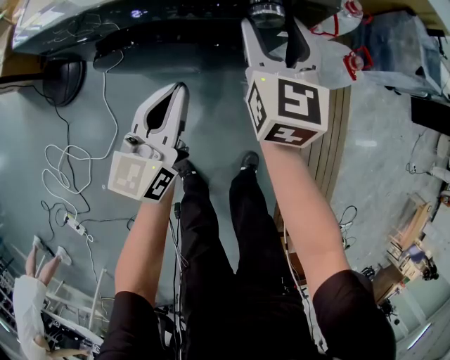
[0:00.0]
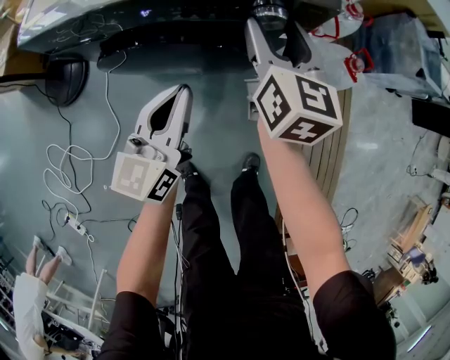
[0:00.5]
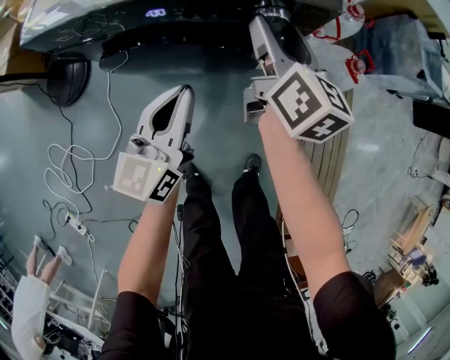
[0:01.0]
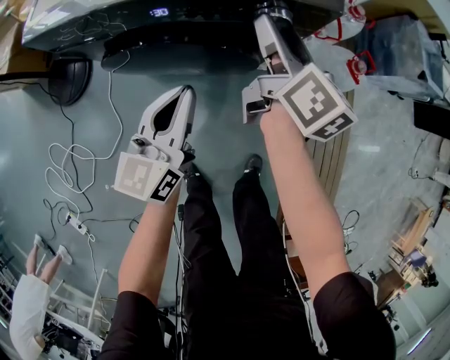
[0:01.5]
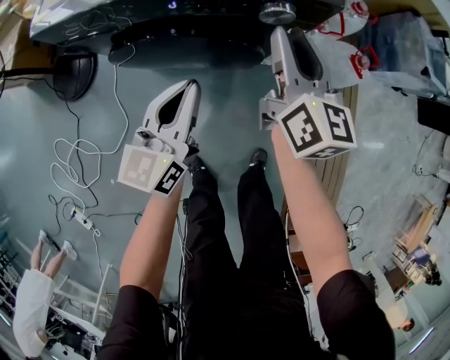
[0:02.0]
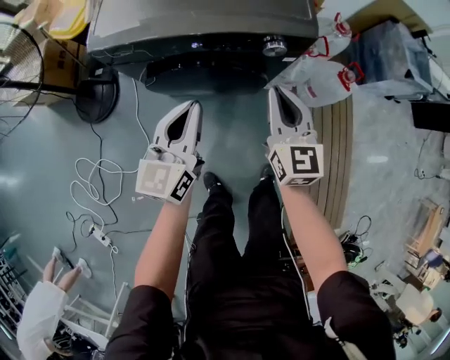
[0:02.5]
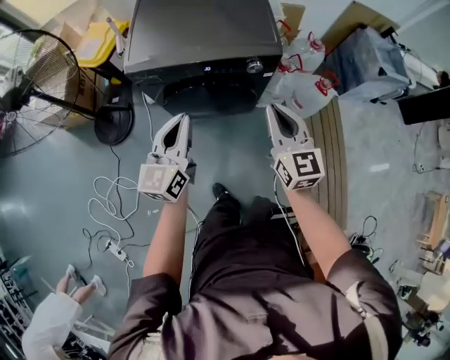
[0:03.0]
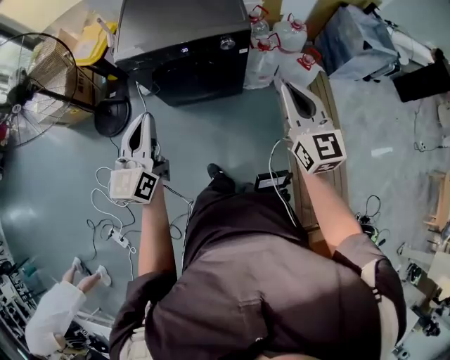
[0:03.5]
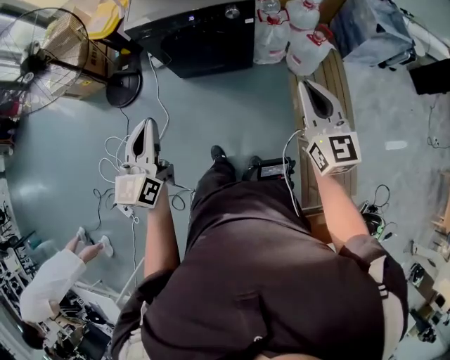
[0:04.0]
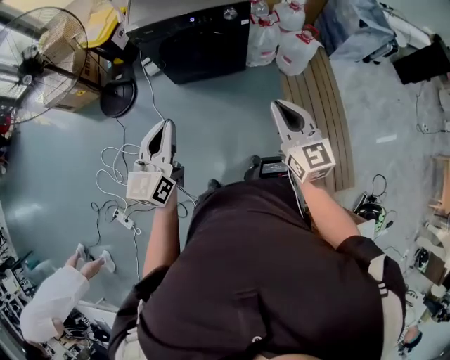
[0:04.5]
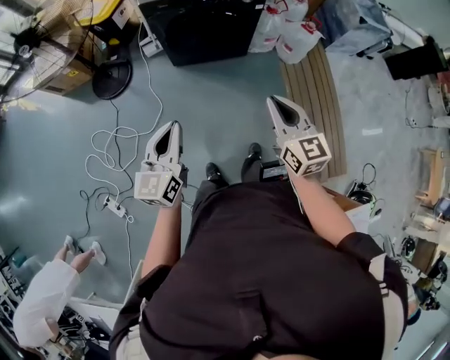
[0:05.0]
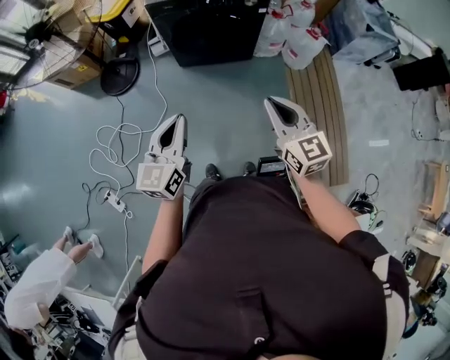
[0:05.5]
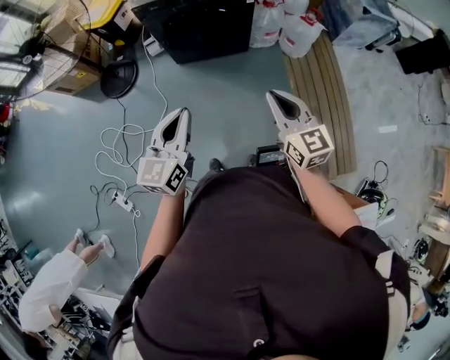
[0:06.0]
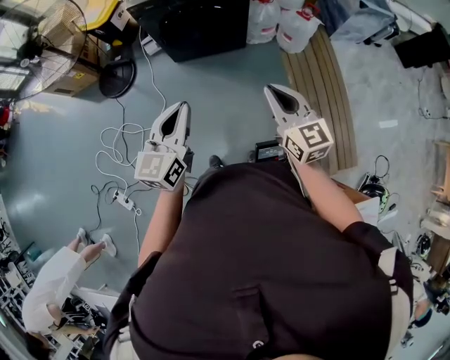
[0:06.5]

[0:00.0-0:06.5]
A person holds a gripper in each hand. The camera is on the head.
0:00.0 to 0:02.0: The right gripper shifts by roughly 5 cm, changes its angle by some 20 degrees, and closes.
0:02.0 to 0:04.5: Both grippers are carried backward, some 50 cm. Both grippers travel together upward, about 30 cm. The right gripper turns by roughly 20 degrees, and closes.
0:04.5 to 0:06.5: Both grippers move backward, roughly 5 cm. The right gripper reaches roughly 10 cm to the left, then returns; the left gripper goes to the left and returns, some 10 cm each way.

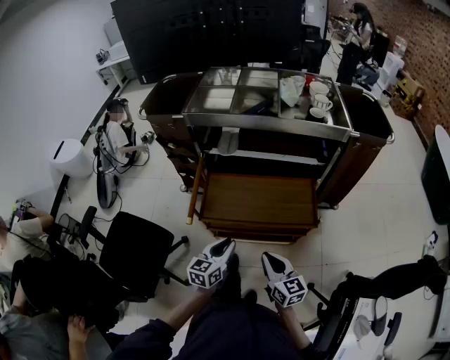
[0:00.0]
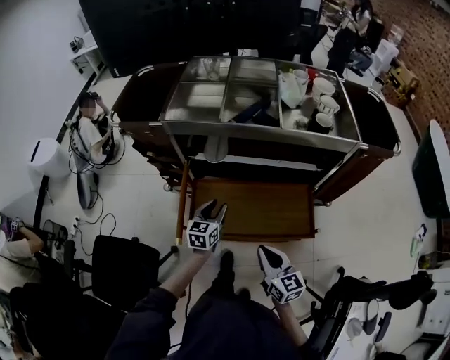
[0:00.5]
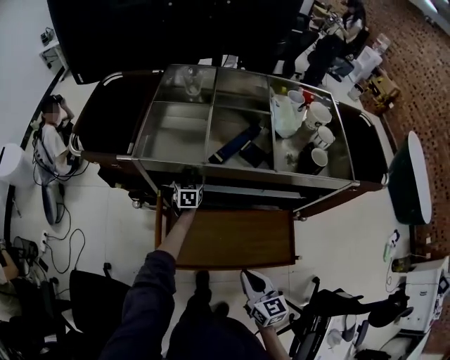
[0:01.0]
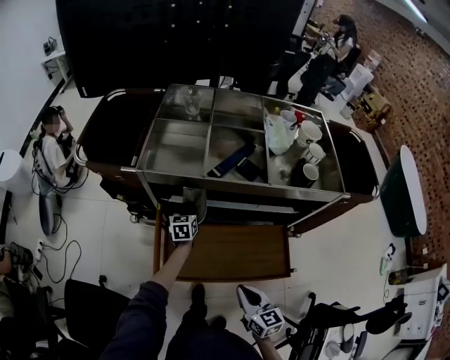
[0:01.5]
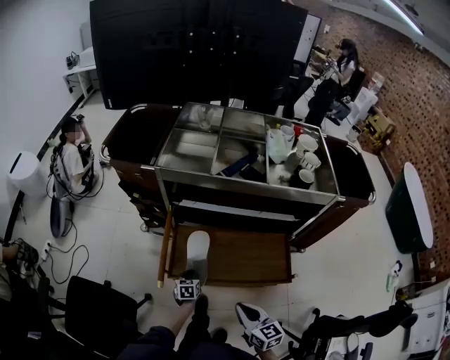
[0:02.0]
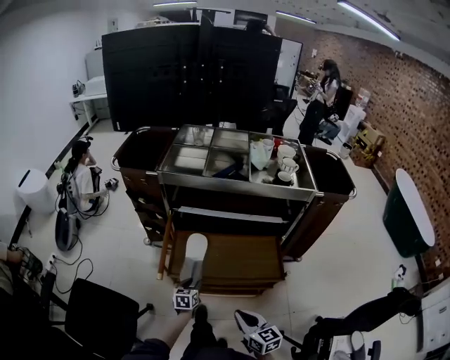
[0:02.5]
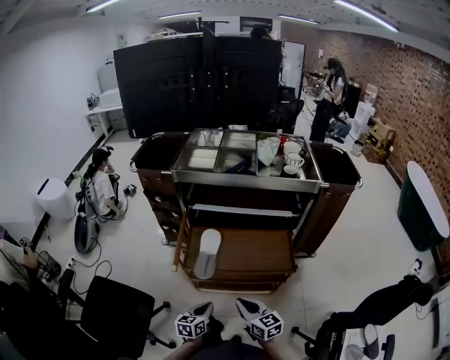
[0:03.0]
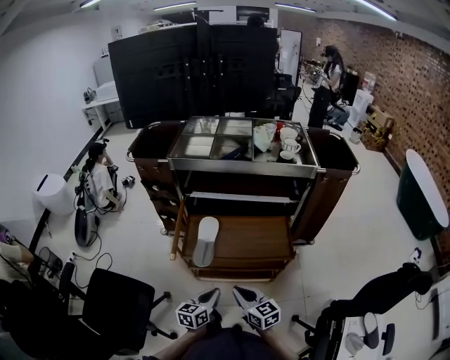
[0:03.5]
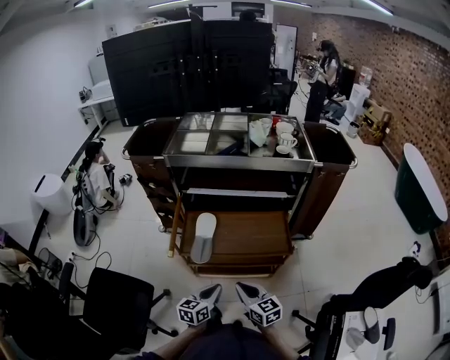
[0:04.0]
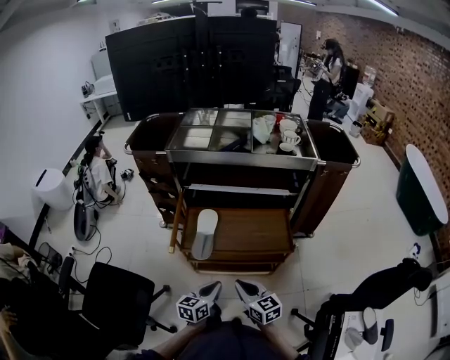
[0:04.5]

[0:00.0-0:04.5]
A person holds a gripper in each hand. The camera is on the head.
0:00.0 to 0:02.0: The left gripper is displaced downward and forward by some 30 cm, swivels about 30 degrees, and opens, then closes again. Meanwhile the right gripper moves forward, approximately 10 cm.
0:02.0 to 0:04.5: The left gripper moves backward and upward, roughly 35 cm, rotates approximately 30 degrees, and opens and closes again; the right gripper goes about 10 cm backward.

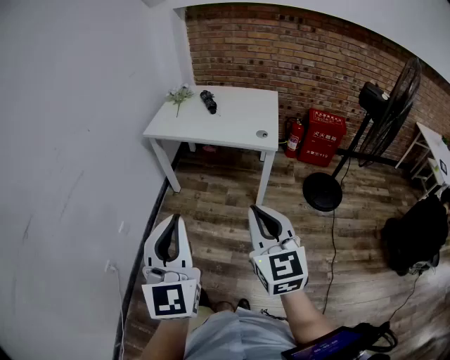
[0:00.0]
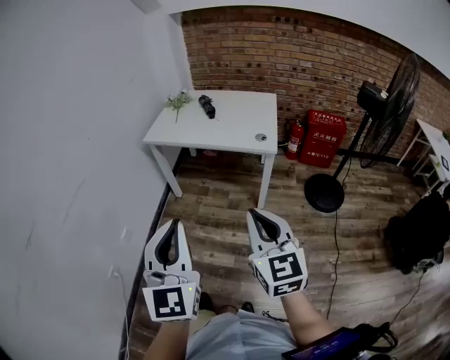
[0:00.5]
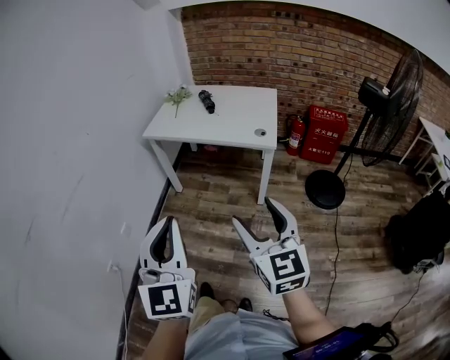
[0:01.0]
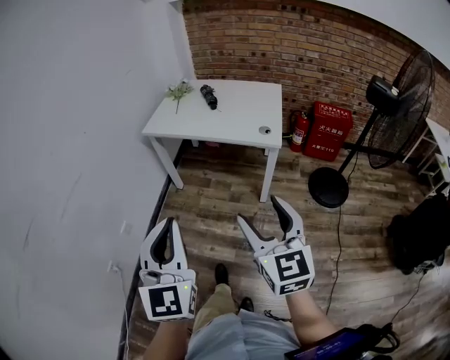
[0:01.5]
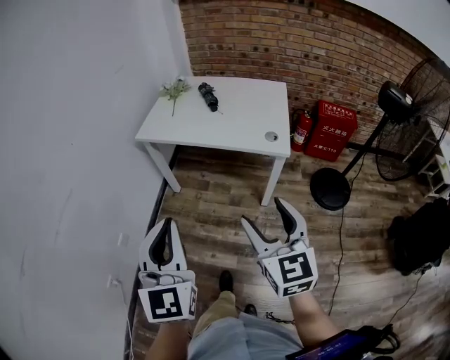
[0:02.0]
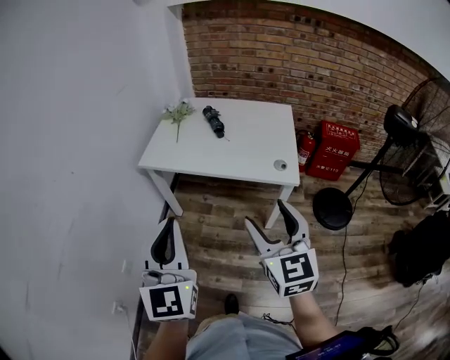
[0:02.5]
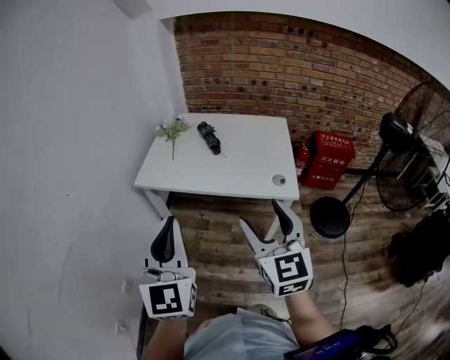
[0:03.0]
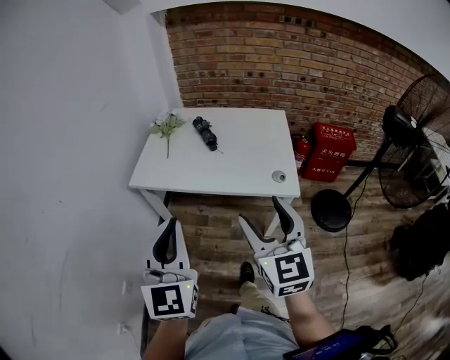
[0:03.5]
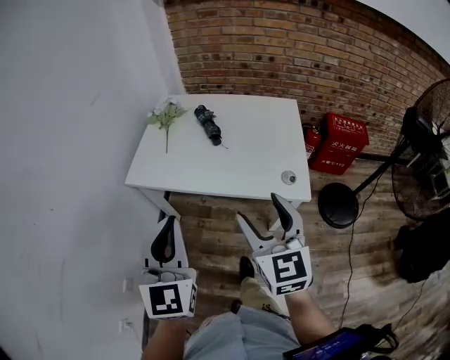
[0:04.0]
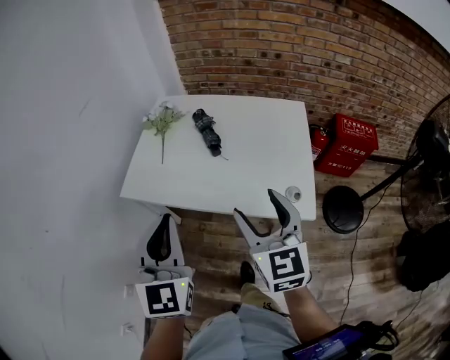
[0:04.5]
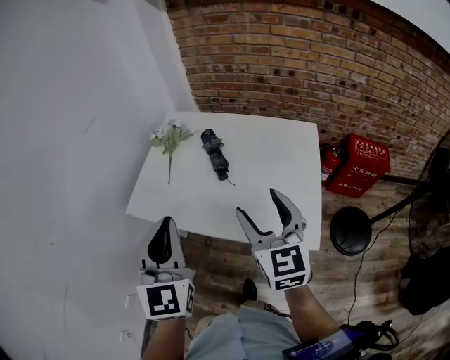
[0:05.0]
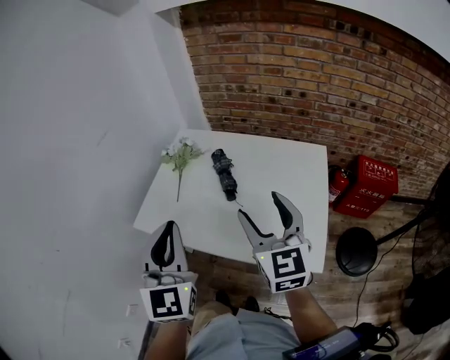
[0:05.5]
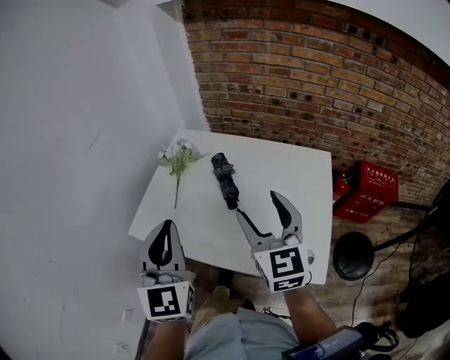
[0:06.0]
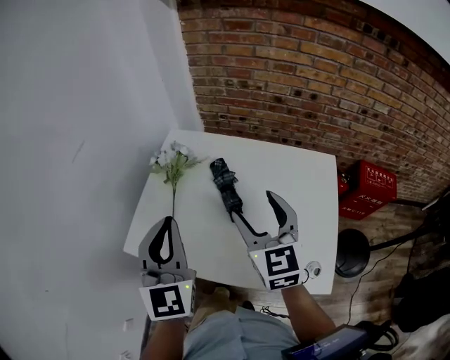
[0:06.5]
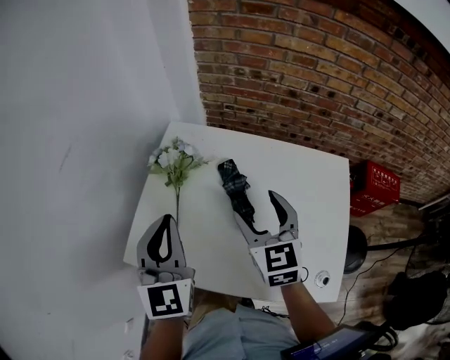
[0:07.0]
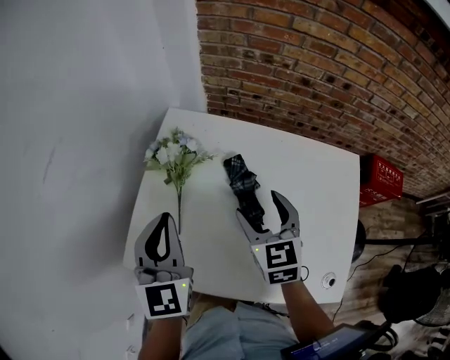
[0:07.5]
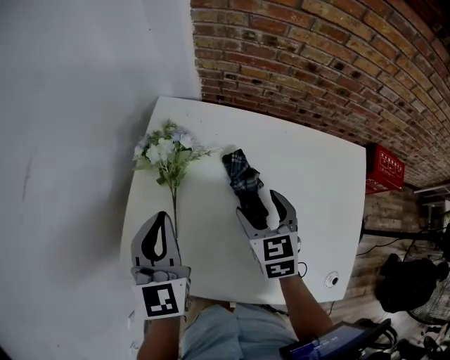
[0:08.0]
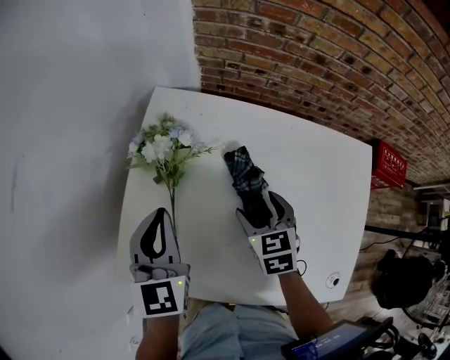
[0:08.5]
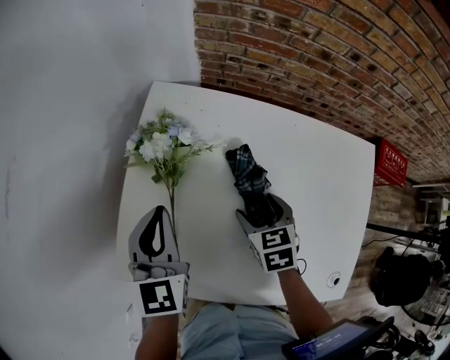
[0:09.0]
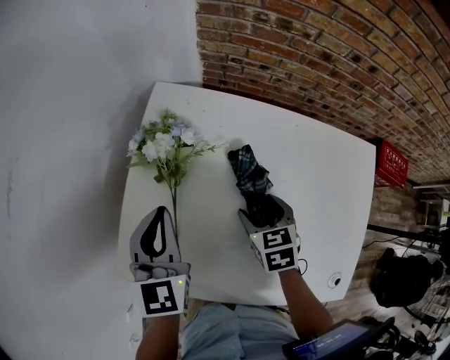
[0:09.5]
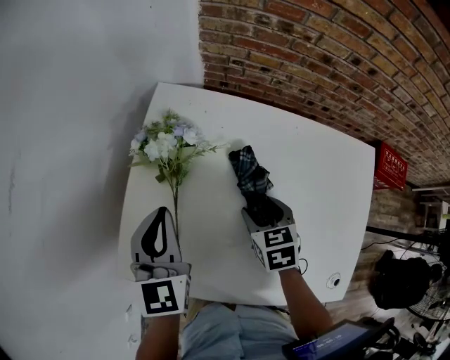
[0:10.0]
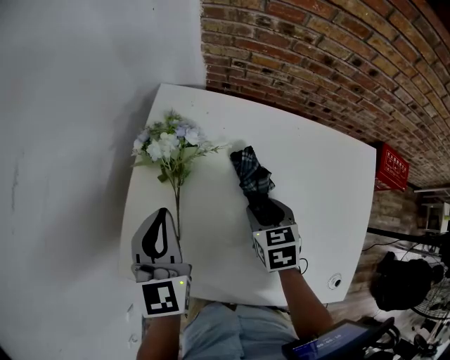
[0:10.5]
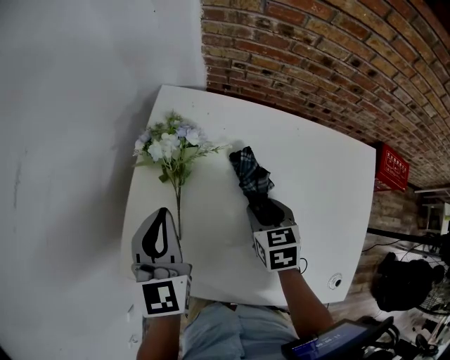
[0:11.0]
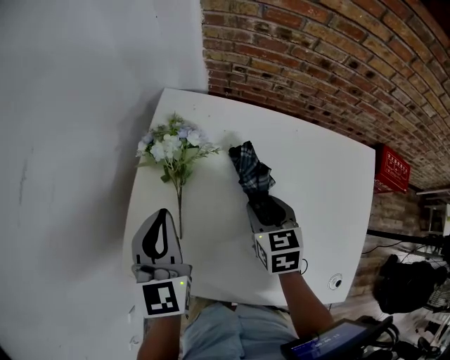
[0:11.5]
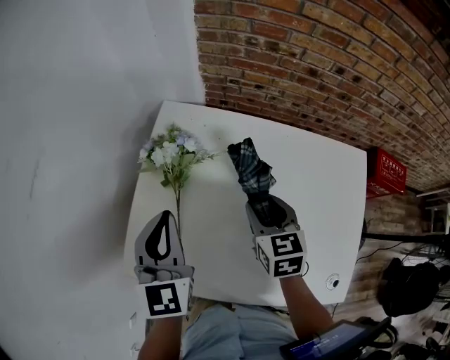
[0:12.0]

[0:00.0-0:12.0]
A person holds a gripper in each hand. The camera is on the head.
0:00.0 to 0:02.0: Both grippers travel together forward, roughly 15 cm. The right gripper opens.
0:02.0 to 0:04.0: The two grippers go some 25 cm forward.
0:04.0 to 0:06.0: Both grippers travel together forward, some 25 cm.
0:06.0 to 0:08.0: The right gripper heads downward and forward, covering some 30 cm, and tilts its fingers approximately 30 degrees downward; the left gripper heads forward and downward, covering some 30 cm.
0:08.0 to 0:10.0: The right gripper moves downward, about 10 cm; the left gripper shifts by about 5 cm.
0:10.0 to 0:12.0: The right gripper travels upward by about 10 cm. Meanwhile the left gripper is displaced upward by some 5 cm.

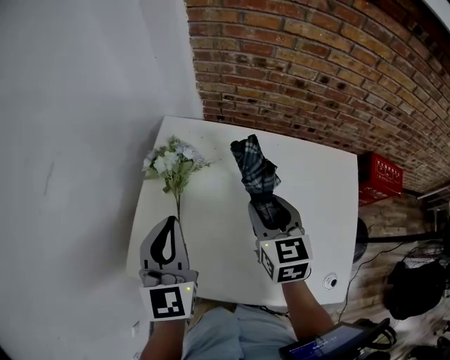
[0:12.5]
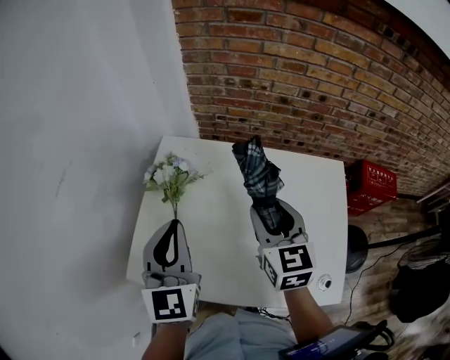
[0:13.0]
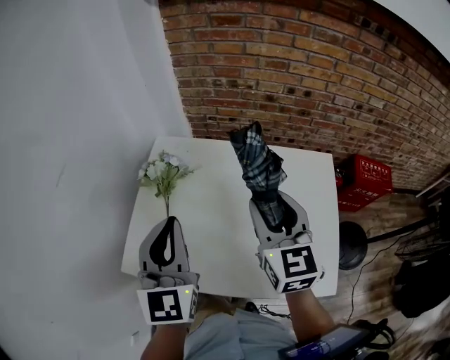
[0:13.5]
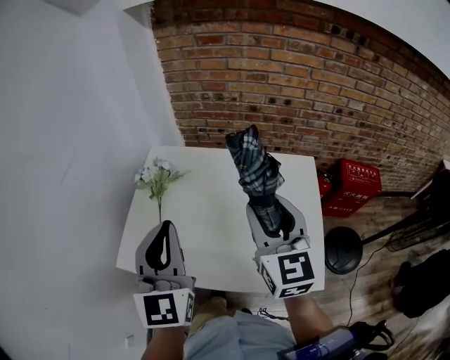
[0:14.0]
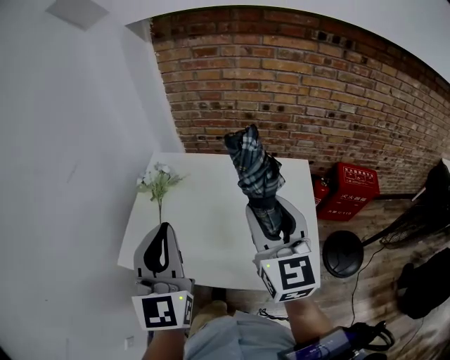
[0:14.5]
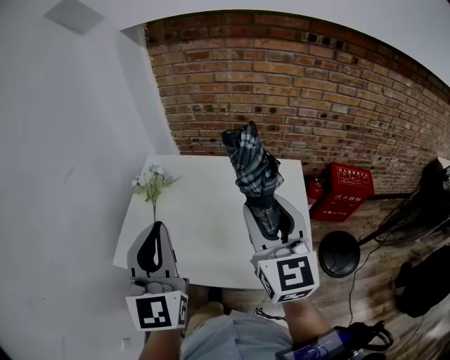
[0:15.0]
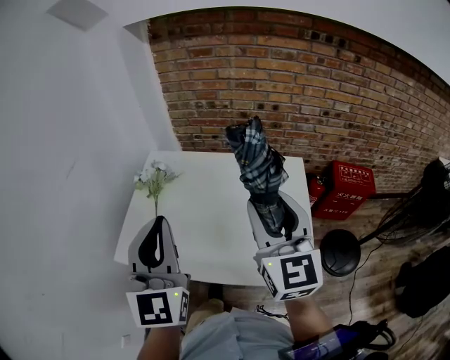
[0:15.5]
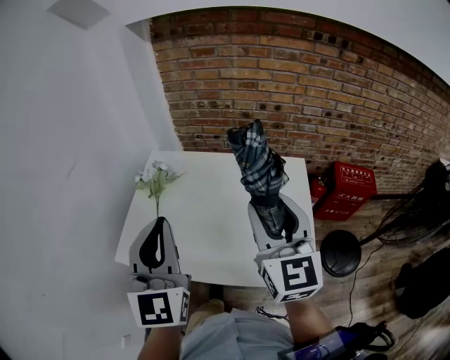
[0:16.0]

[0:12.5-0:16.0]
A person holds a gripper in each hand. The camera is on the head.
0:12.5 to 0:14.5: The left gripper is displaced backward, upward and to the right by approximately 25 cm; the right gripper travels upward, backward and to the right by some 30 cm, and changes its angle by roughly 30 degrees.
0:14.5 to 0:16.0: The grippers stay close to where they were, moving slightly.
